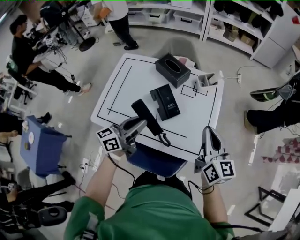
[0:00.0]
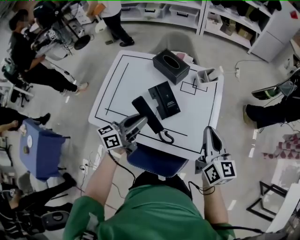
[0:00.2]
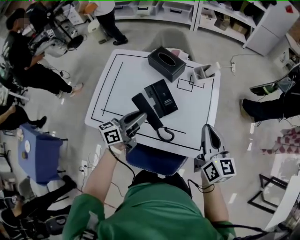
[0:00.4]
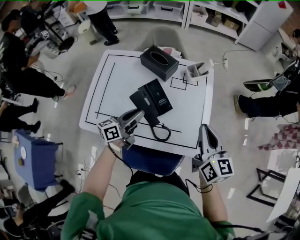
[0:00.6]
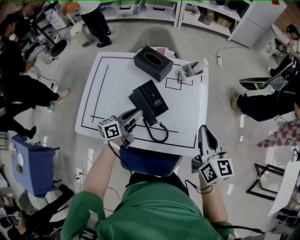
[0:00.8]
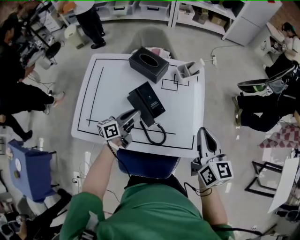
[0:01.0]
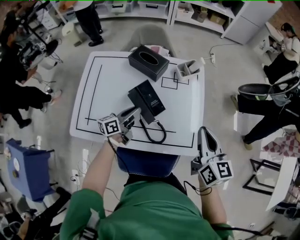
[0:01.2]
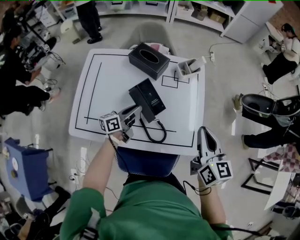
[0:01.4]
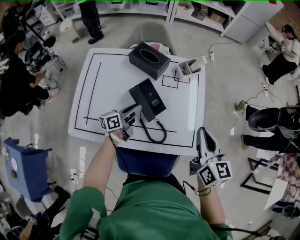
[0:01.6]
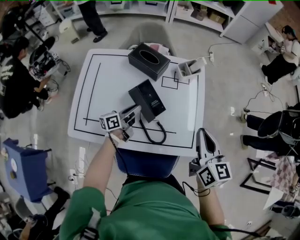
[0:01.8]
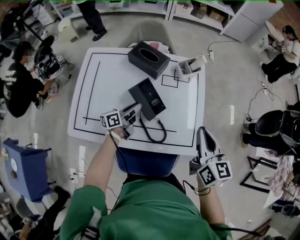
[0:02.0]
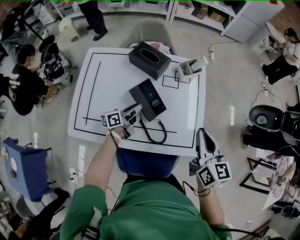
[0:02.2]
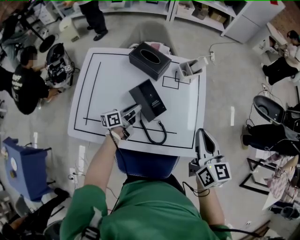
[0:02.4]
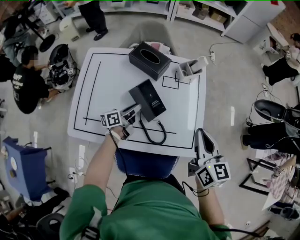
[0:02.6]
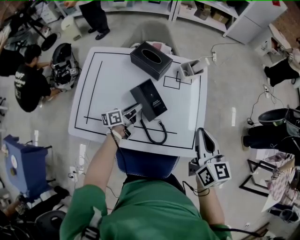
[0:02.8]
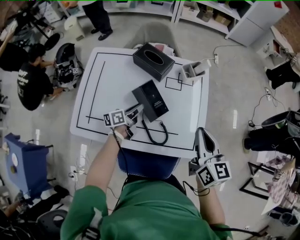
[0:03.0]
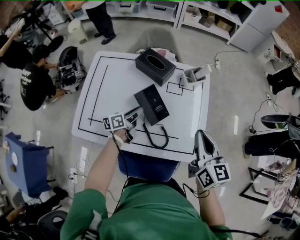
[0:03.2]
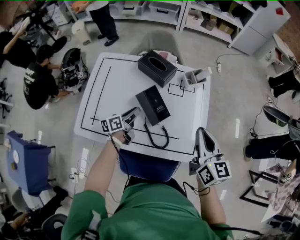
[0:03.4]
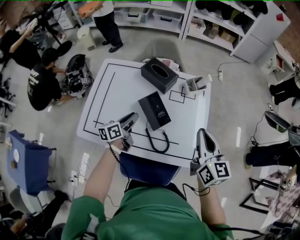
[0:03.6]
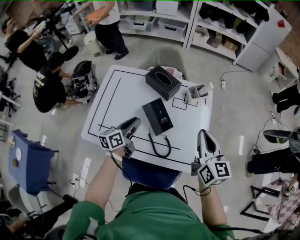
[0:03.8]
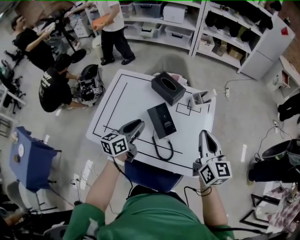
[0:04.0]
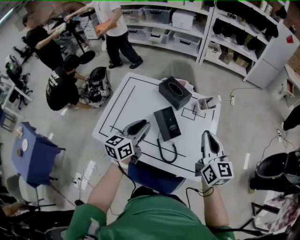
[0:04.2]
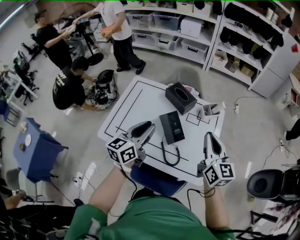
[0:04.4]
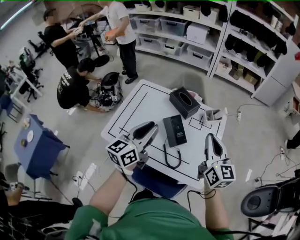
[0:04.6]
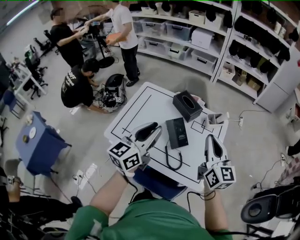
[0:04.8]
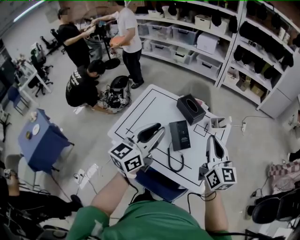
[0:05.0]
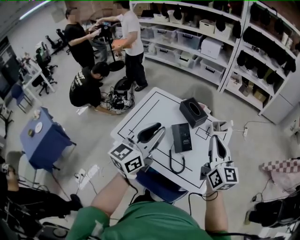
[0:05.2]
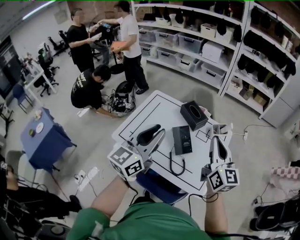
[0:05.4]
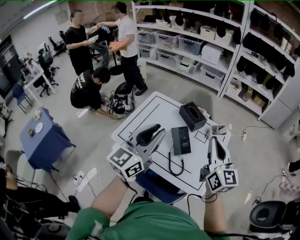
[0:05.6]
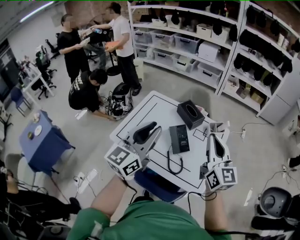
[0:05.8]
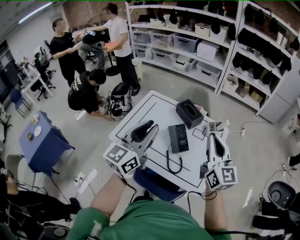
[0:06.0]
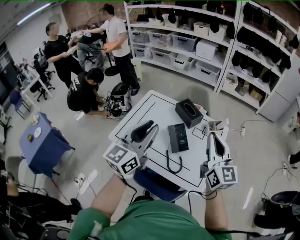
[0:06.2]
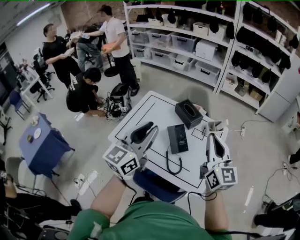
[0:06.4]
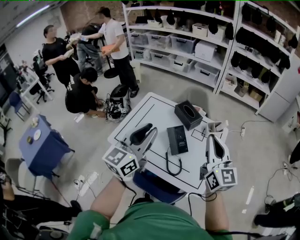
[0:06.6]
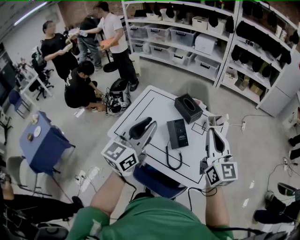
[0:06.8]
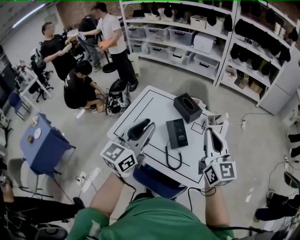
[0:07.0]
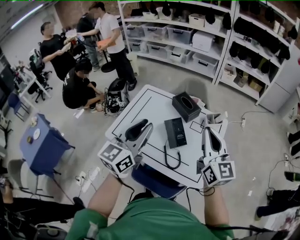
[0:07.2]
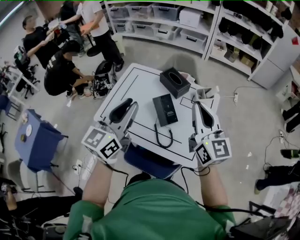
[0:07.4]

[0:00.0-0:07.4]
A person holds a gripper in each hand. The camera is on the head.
0:00.0 to 0:01.4: The left gripper goes roughly 20 cm downward and forward, and turns by approximately 20 degrees.
0:01.4 to 0:03.0: The grippers move only a little.
0:03.0 to 0:04.4: The right gripper heads upward, covering some 10 cm. Meanwhile the left gripper shifts approximately 30 cm upward, and changes its angle by about 40 degrees.
0:04.4 to 0:06.0: The left gripper is displaced upward and backward by roughly 15 cm, and turns by some 20 degrees. Meanwhile the right gripper heads upward, covering roughly 10 cm.
0:06.0 to 0:07.4: The grippers make only small movements.

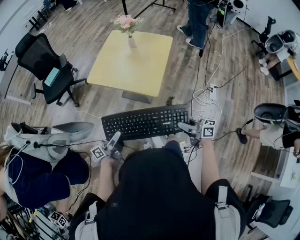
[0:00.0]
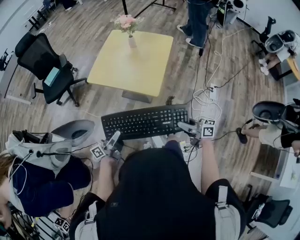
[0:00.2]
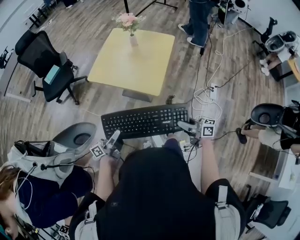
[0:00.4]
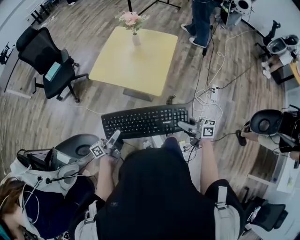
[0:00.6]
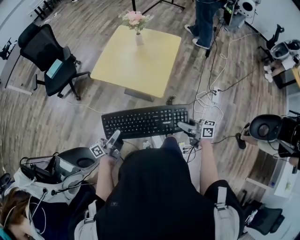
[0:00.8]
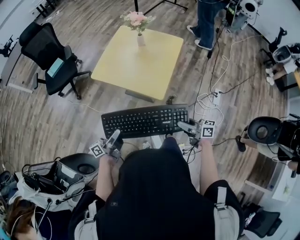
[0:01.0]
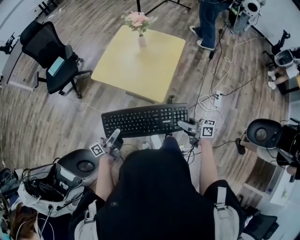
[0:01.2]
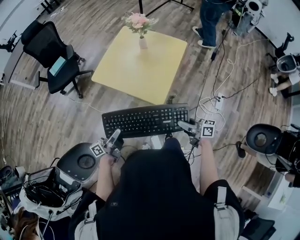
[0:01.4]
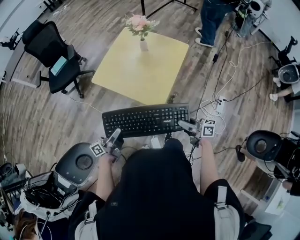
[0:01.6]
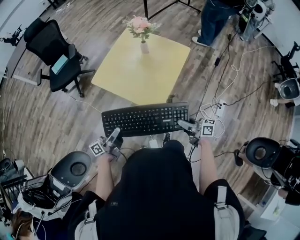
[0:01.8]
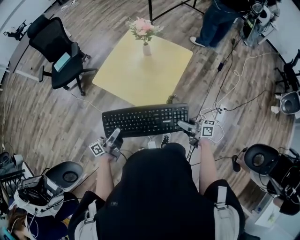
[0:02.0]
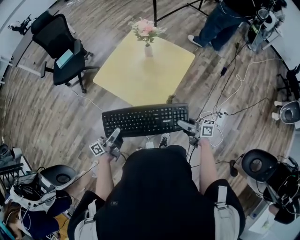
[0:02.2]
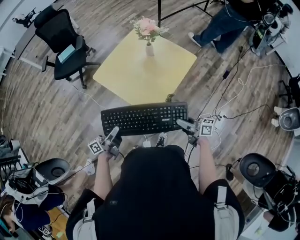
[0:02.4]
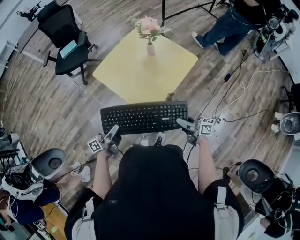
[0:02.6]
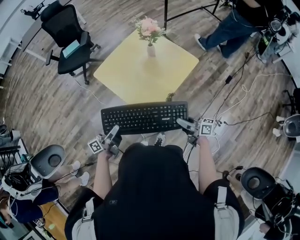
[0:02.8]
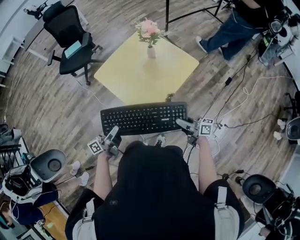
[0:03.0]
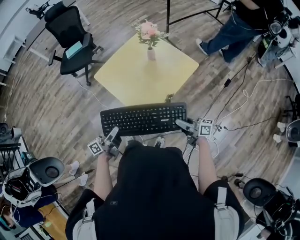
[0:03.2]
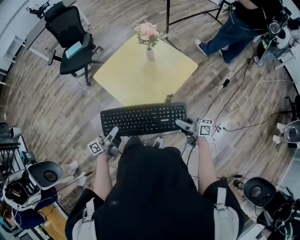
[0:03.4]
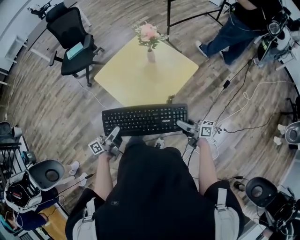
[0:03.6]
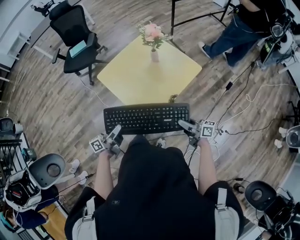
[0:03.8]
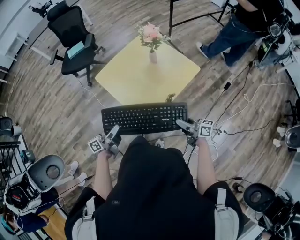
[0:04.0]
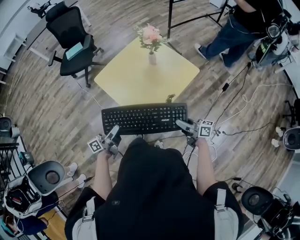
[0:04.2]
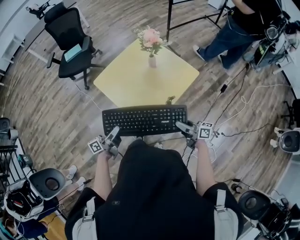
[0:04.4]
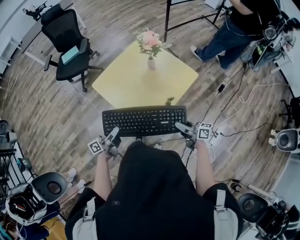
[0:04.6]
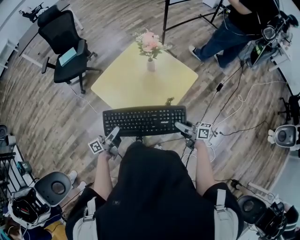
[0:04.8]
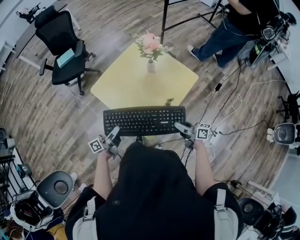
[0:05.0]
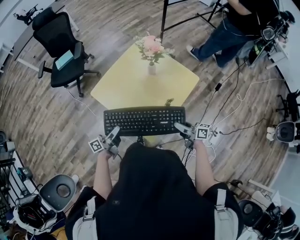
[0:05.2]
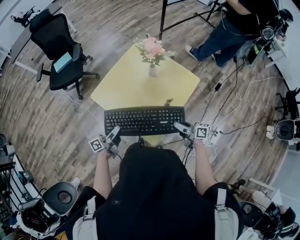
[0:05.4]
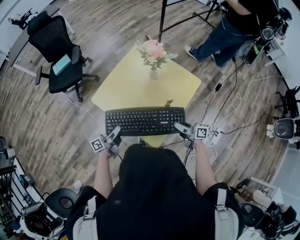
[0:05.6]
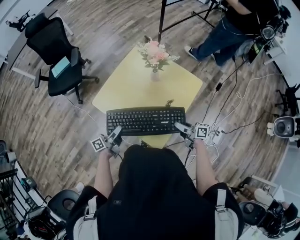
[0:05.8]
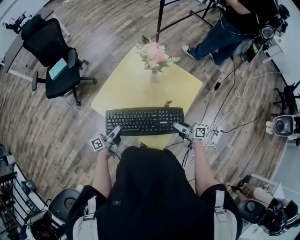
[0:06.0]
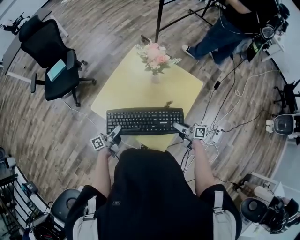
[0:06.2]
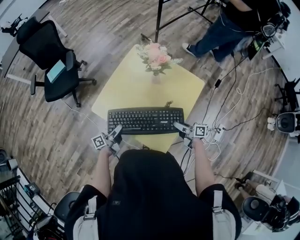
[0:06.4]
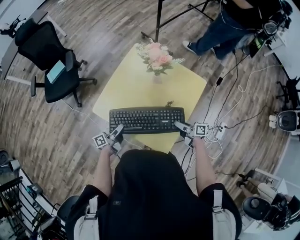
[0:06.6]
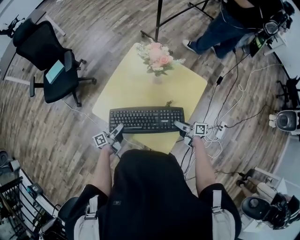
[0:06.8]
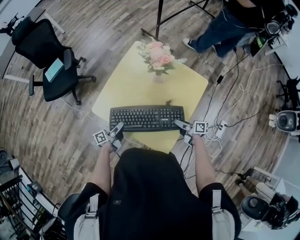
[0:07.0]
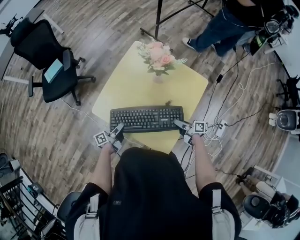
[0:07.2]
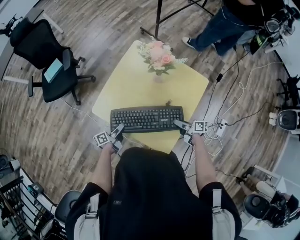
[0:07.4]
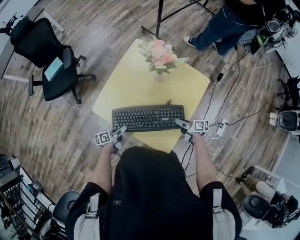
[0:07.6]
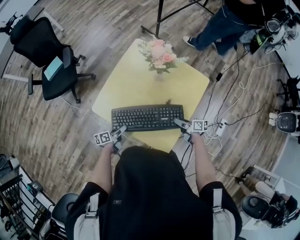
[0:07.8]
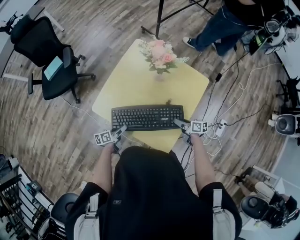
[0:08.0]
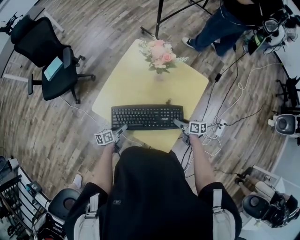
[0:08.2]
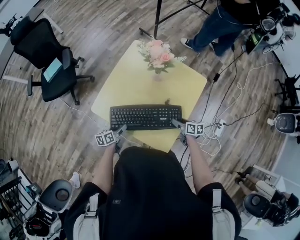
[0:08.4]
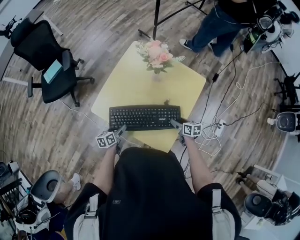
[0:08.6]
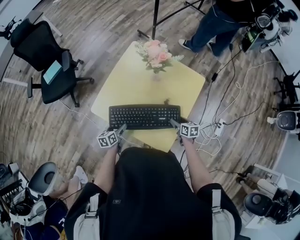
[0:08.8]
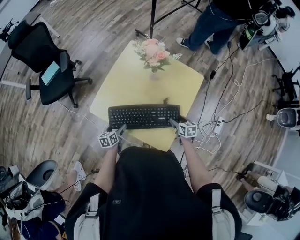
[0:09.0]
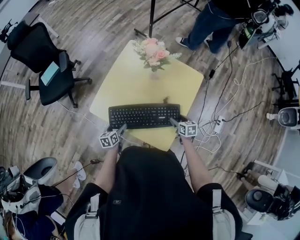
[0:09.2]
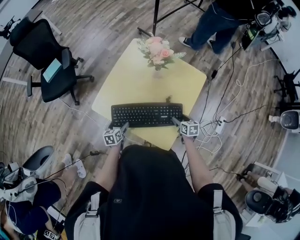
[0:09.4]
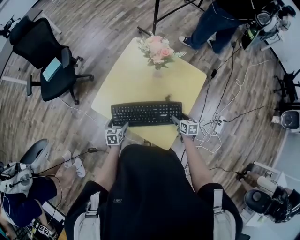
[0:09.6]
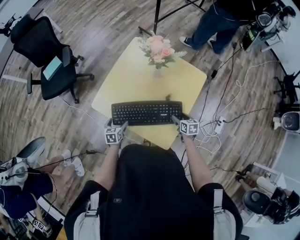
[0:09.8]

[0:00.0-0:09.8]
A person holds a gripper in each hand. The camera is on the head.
0:00.0 to 0:01.4: The grippers both shift forward by some 10 cm.
0:01.4 to 0:02.8: The right gripper moves forward and to the right, roughly 20 cm. Meanwhile the left gripper travels to the right and forward by roughly 15 cm.
0:02.8 to 0:04.2: The right gripper changes place by some 5 cm.
0:04.2 to 0:05.6: Both grippers move forward, some 15 cm.
0:05.6 to 0:07.0: The right gripper moves downward and forward, roughly 10 cm, while the left gripper is displaced forward and downward by about 15 cm.
0:07.0 to 0:08.4: The left gripper is displaced downward by some 5 cm, rotates roughly 40 degrees, and opens. Meanwhile the right gripper ends up some 5 cm from where it was, changes its angle by approximately 30 degrees, and opens its fingers.
0:08.4 to 0:09.8: The left gripper rotates some 30 degrees. The right gripper rotates roughly 20 degrees.

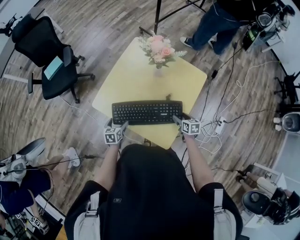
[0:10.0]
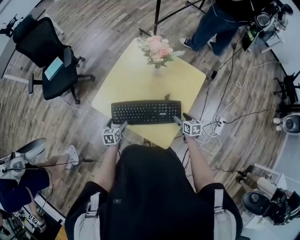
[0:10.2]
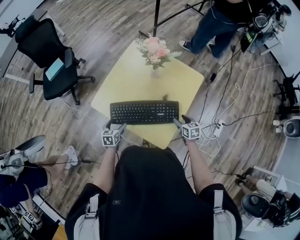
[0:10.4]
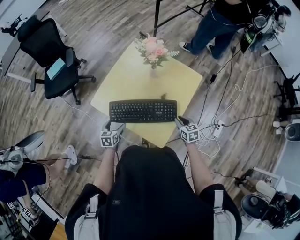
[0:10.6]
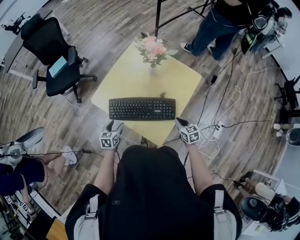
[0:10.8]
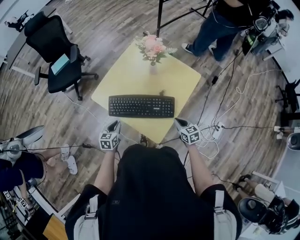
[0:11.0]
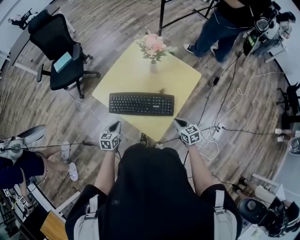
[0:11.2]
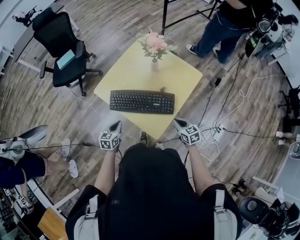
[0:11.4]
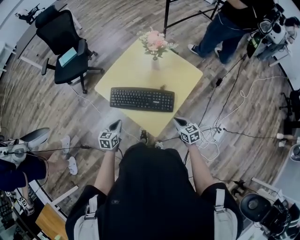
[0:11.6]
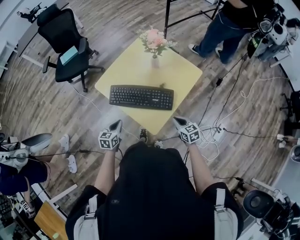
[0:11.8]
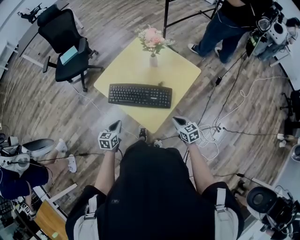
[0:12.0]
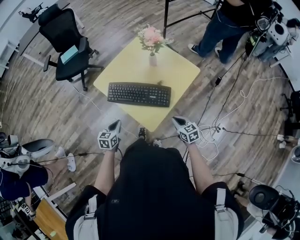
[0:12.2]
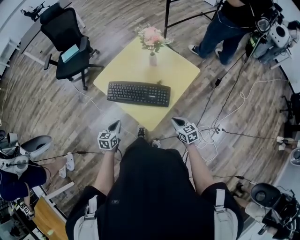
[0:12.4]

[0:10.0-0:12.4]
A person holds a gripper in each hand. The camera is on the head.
0:10.0 to 0:11.2: The two grippers go roughly 15 cm backward and upward. The right gripper rotates some 30 degrees, and closes. The left gripper closes.
0:11.2 to 0:12.4: The grippers both shift backward by about 10 cm.

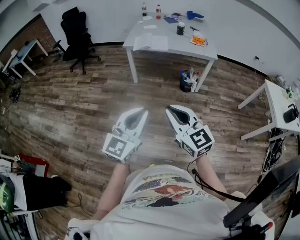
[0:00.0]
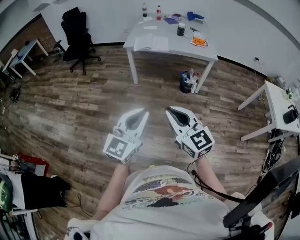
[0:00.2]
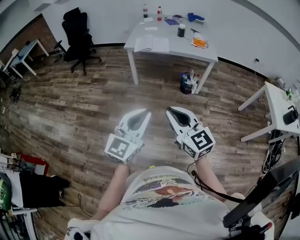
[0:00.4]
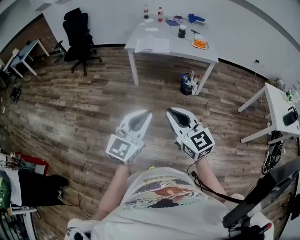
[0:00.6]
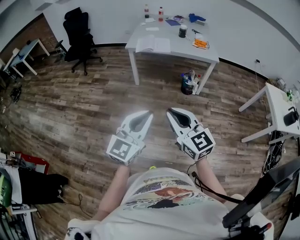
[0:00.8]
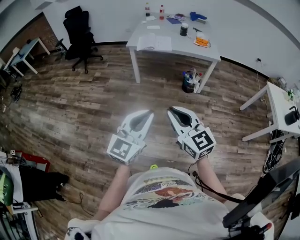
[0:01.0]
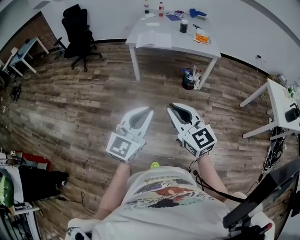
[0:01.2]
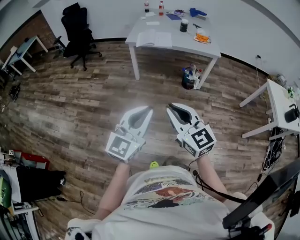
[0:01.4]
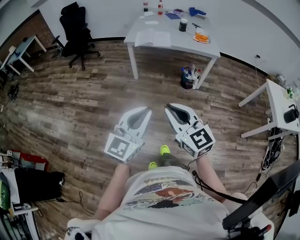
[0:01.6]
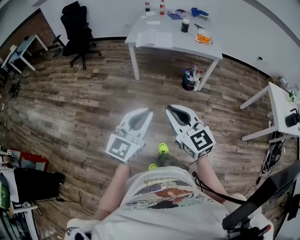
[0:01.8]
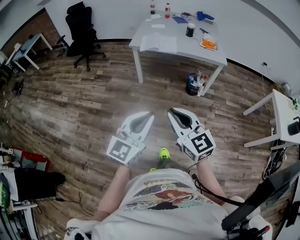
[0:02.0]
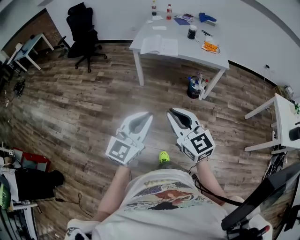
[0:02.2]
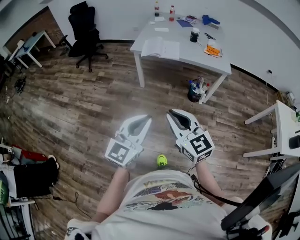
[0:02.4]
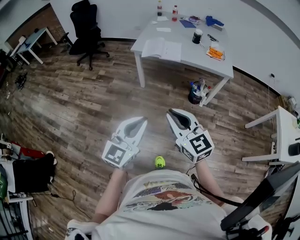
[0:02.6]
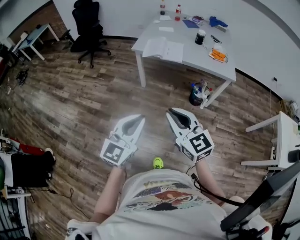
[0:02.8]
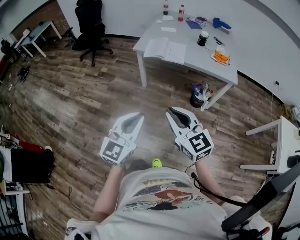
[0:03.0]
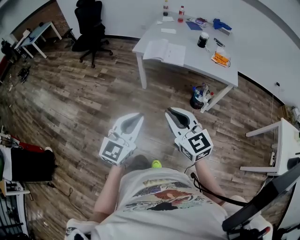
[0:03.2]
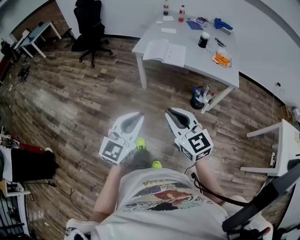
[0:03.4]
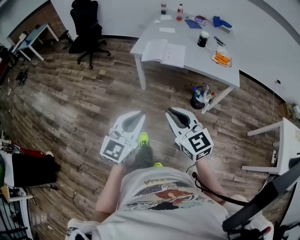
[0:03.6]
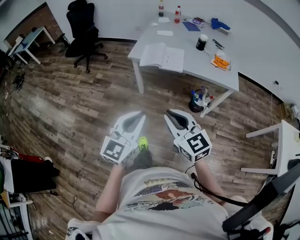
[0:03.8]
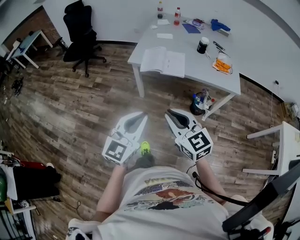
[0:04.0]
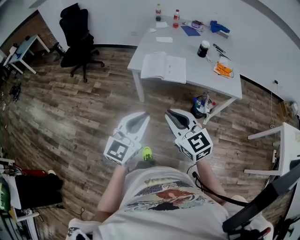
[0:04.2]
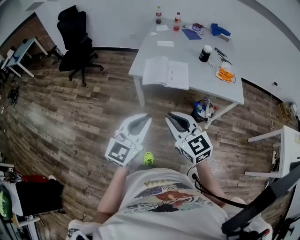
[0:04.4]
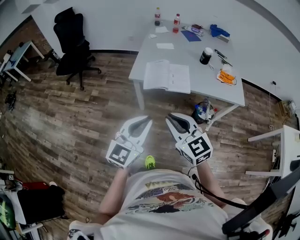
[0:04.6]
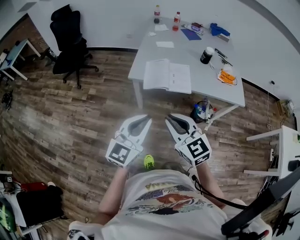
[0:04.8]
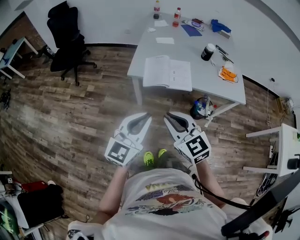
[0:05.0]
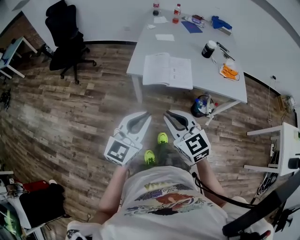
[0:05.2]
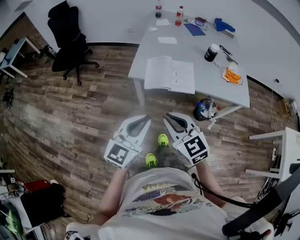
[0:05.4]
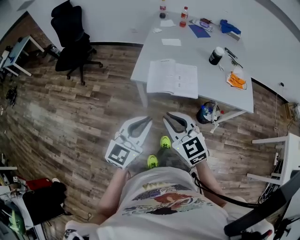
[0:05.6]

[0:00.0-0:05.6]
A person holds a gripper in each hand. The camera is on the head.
0:00.0 to 0:01.4: There are only small adjustments of the grippers.
0:01.4 to 0:02.8: The grippers both shift forward by roughly 20 cm.
0:02.8 to 0:04.2: Both grippers move forward, about 25 cm.
0:04.2 to 0:05.6: The two grippers go roughly 20 cm forward.
